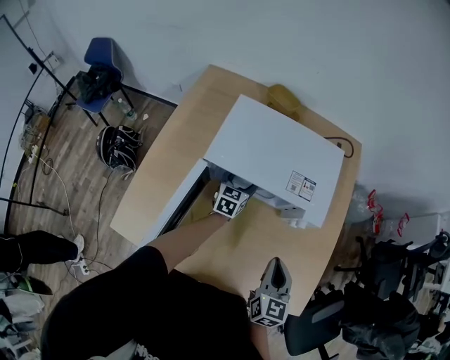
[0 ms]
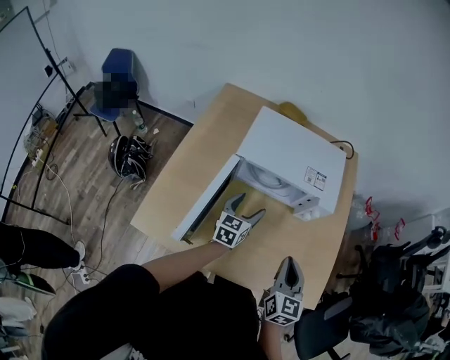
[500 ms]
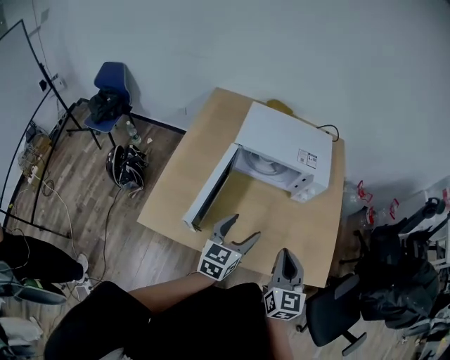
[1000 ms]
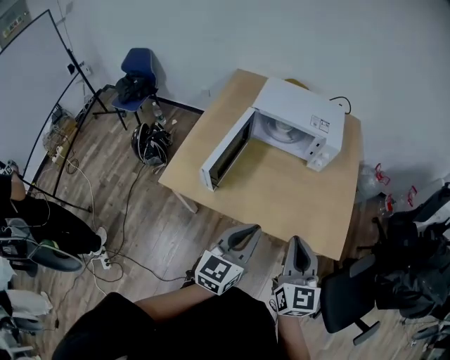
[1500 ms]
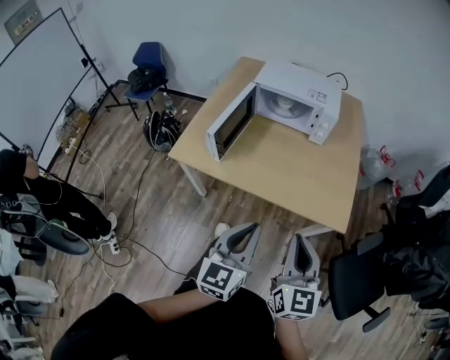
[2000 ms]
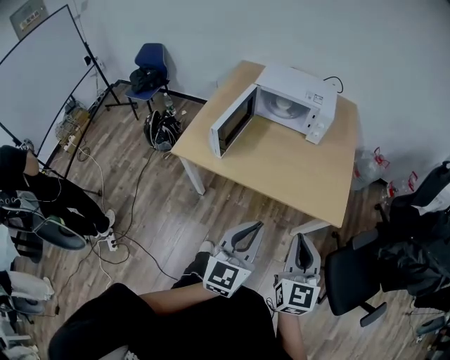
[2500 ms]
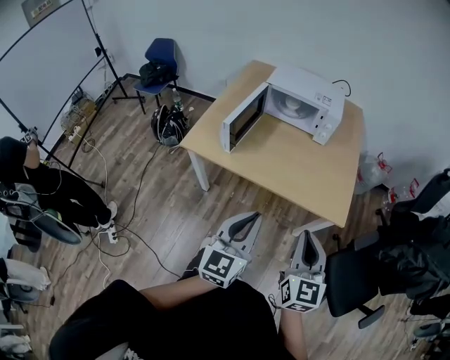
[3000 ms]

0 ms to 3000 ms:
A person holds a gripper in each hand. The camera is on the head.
0 ms to 1500 ms: The left gripper heads backward and upward, covering some 60 cm, and closes its fingers, while the right gripper travels backward and upward by approximately 30 cm, and turns by some 20 degrees.
1500 ms to 3000 ms: Both grippers travel together backward, about 20 cm.

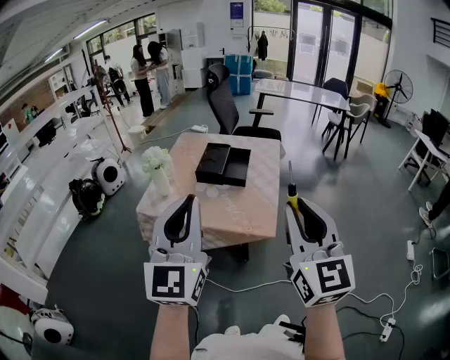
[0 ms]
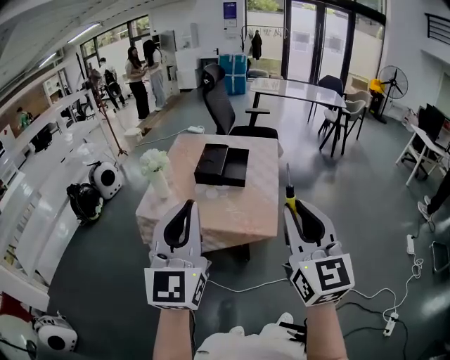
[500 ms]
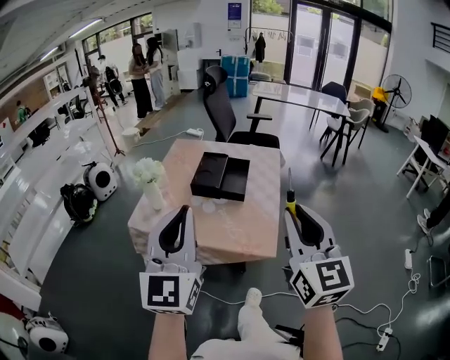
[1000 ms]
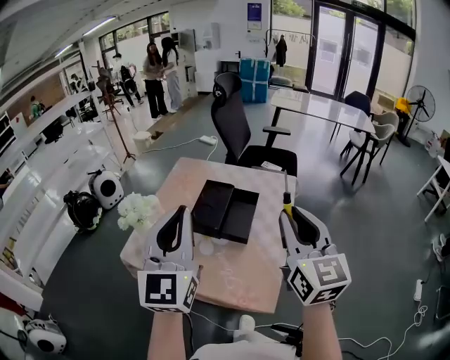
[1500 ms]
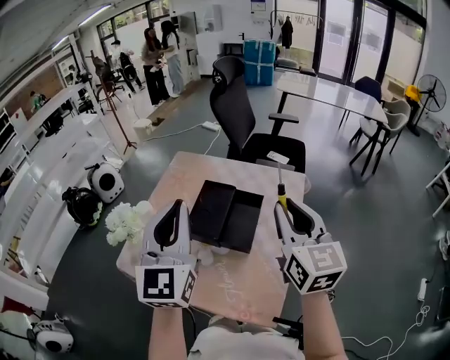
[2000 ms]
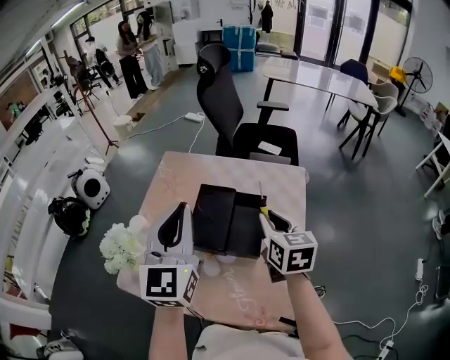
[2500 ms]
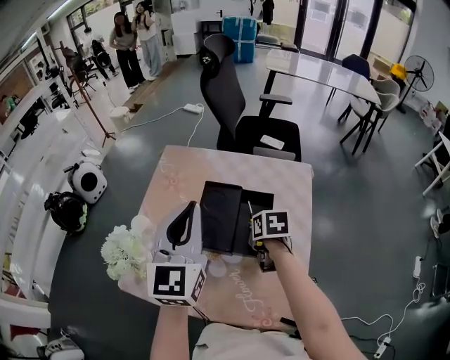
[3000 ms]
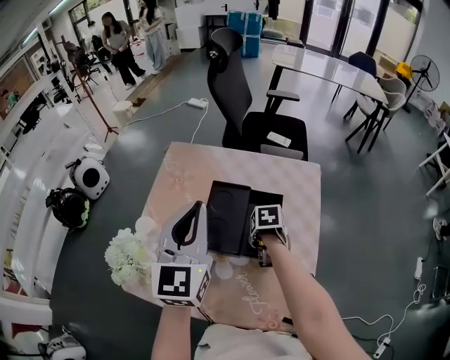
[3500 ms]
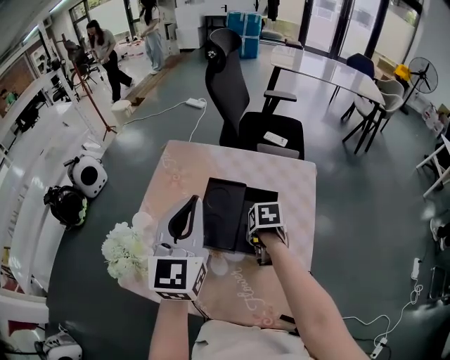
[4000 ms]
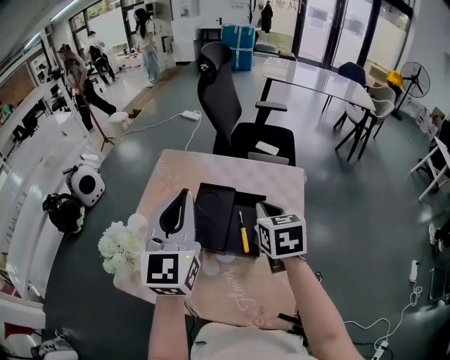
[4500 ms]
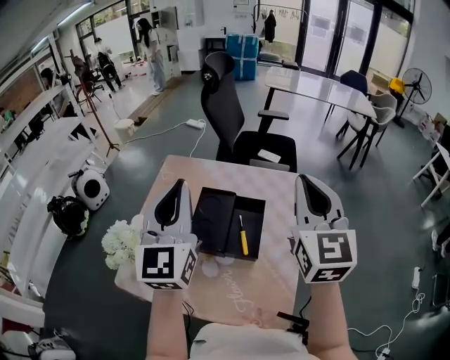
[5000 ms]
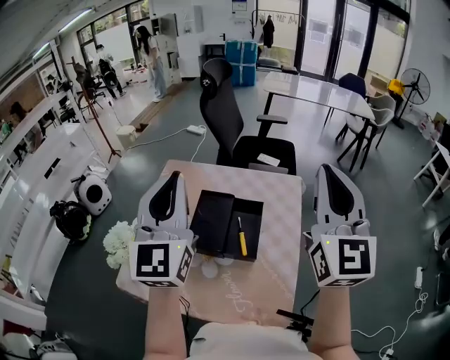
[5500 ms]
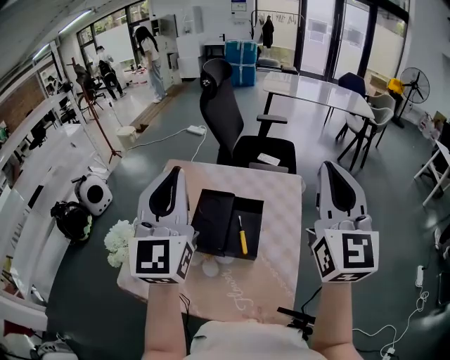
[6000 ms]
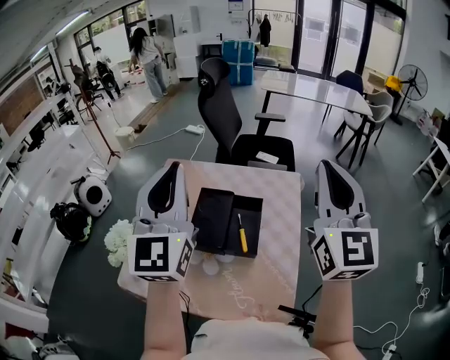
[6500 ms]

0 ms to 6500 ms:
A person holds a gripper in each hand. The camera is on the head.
0 ms to 2000 ms: Both grippers travel together forward, some 40 cm.
2000 ms to 4500 ms: The left gripper shifts about 10 cm forward, while the right gripper shifts about 10 cm forward and to the left, moves about 35 cm downward and comes back, tips its fingers downward by some 30 degrees, and opens, then closes once more.
4500 ms to 6500 ms: The left gripper is displaced upward by roughly 10 cm; the right gripper moves upward and to the right, about 25 cm, and points its fingers some 50 degrees further upward.

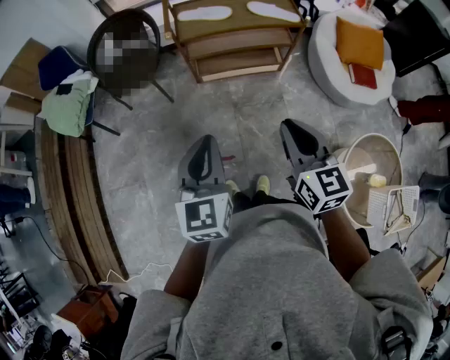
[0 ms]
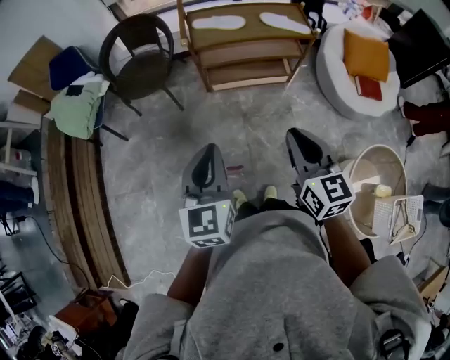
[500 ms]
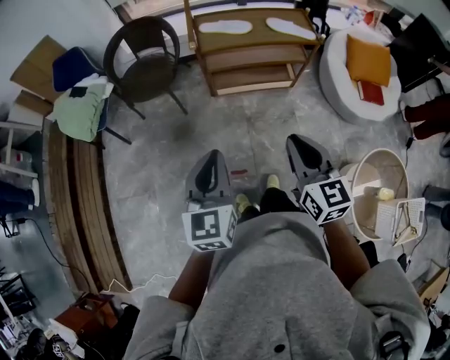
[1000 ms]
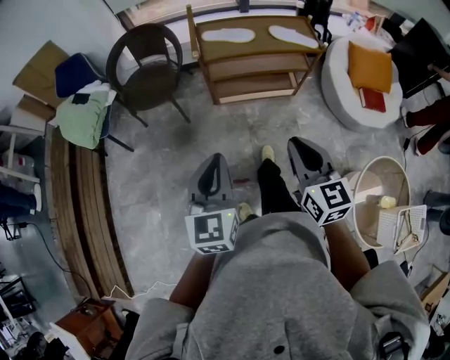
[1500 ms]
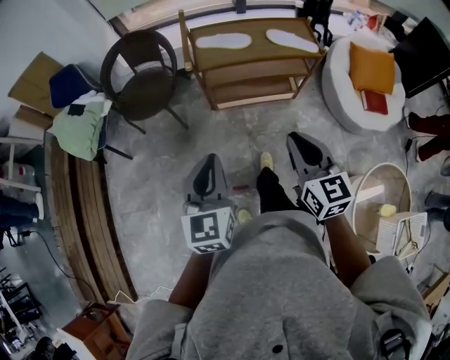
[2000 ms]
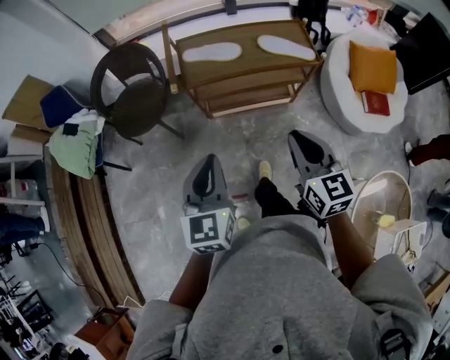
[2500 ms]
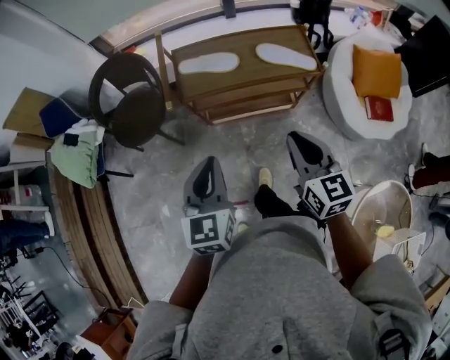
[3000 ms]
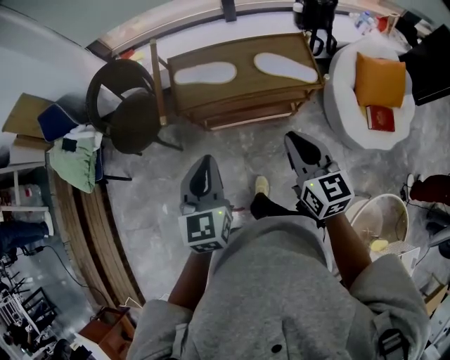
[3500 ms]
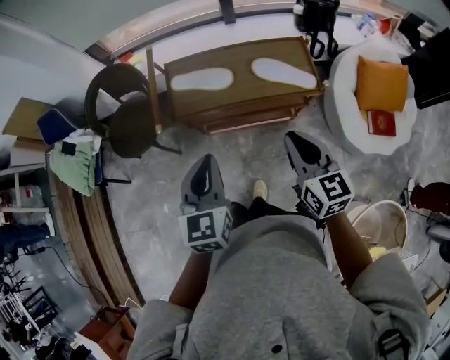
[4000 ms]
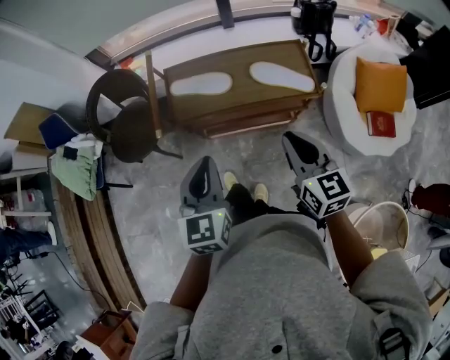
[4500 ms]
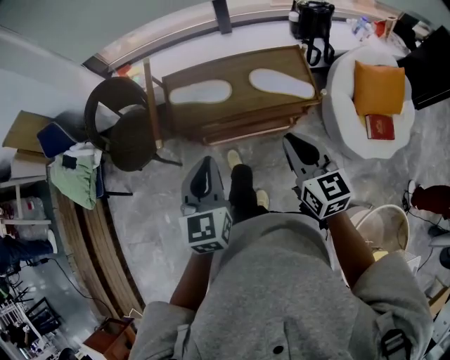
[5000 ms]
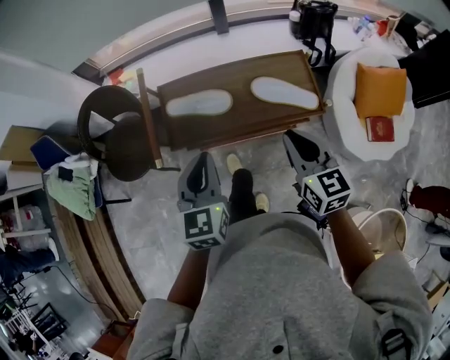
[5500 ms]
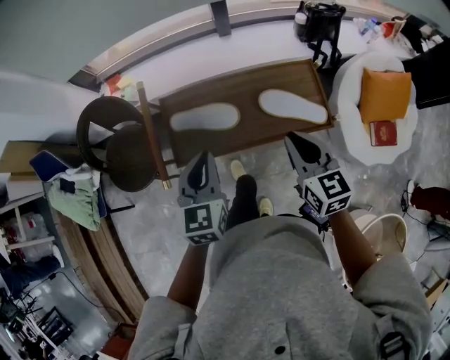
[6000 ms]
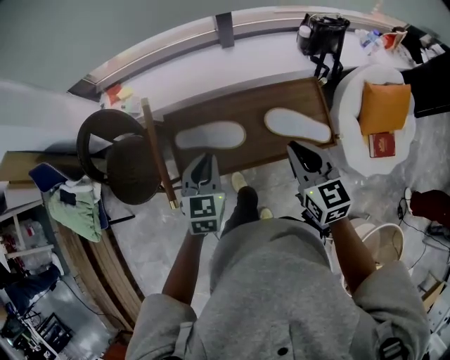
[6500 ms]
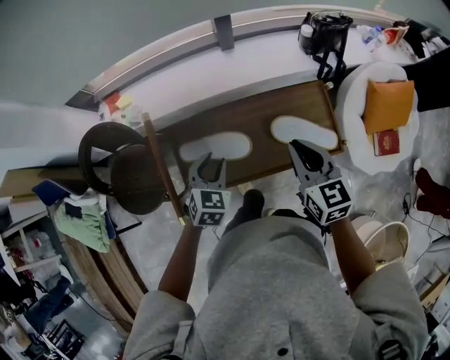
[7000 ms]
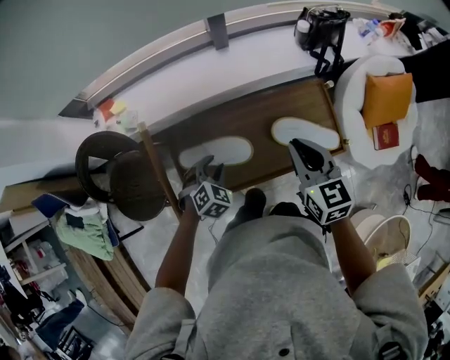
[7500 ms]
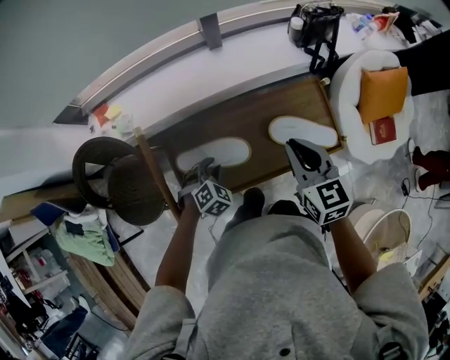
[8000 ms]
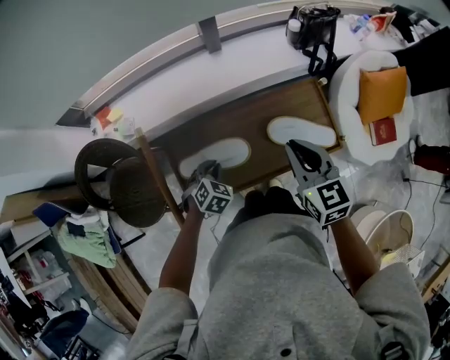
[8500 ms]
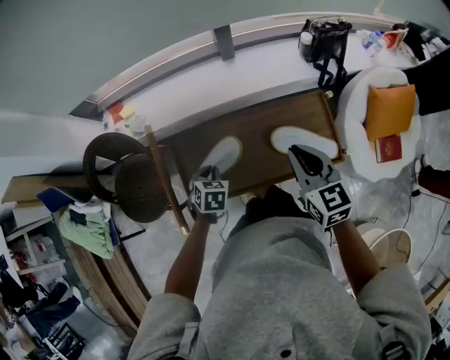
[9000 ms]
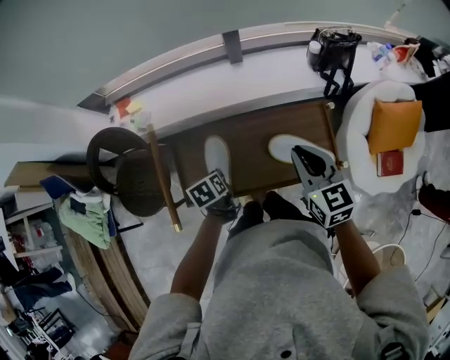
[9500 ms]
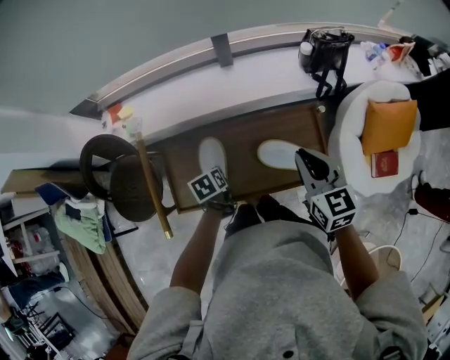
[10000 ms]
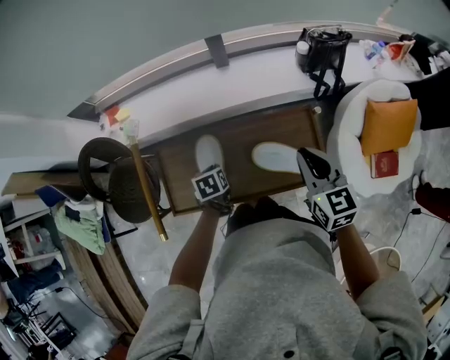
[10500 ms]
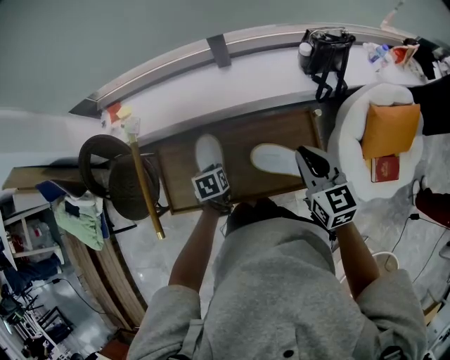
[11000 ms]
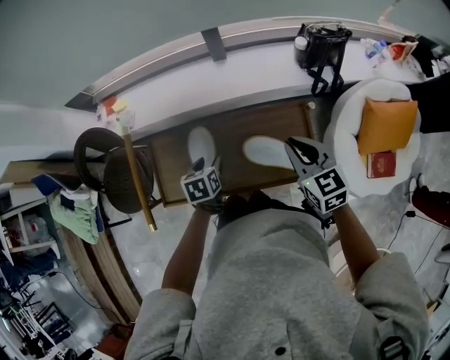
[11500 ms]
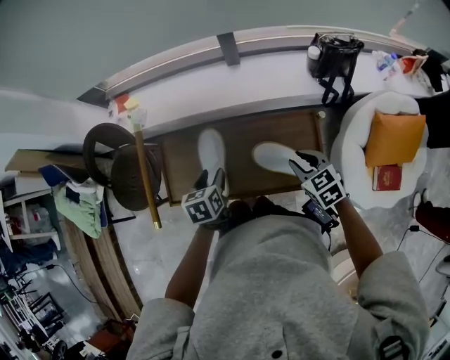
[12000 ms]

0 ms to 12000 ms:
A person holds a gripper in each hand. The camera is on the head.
0 ms to 2000 ms: The two grippers go approximately 10 cm forward.
2000 ms to 4000 ms: Both grippers move forward and to the right, roughly 30 cm.
4000 ms to 6000 ms: Both grippers travel together forward, approximately 20 cm.
6000 ms to 8000 ms: The right gripper is displaced forward by roughly 10 cm. Meanwhile the left gripper is displaced downward and forward by about 25 cm, tips its fingers downward by approximately 40 degrees, and opens up.
8000 ms to 10000 ms: The left gripper rotates around the line of its fingers by about 80 degrees, counterclockwise from behind. Meanwhile the right gripper goes some 10 cm to the right.
10000 ms to 12000 ms: The left gripper is displaced upward by some 5 cm, and opens. The right gripper heads downward, covering roughly 15 cm, and swivels roughly 30 degrees.

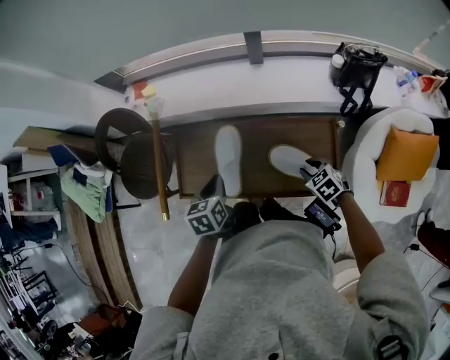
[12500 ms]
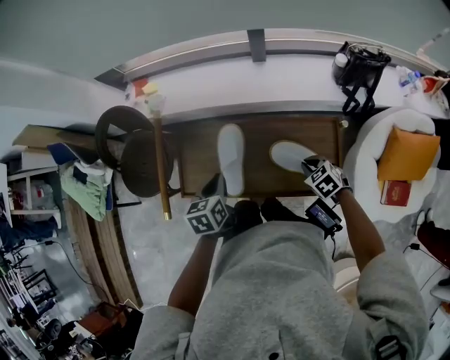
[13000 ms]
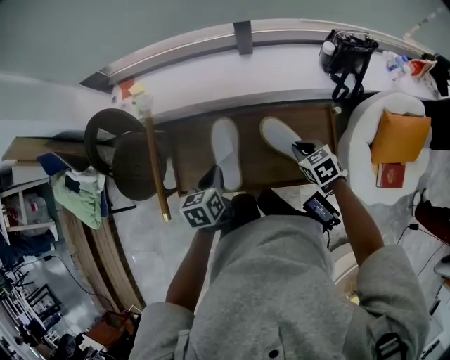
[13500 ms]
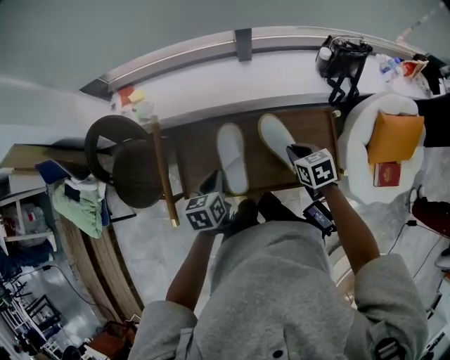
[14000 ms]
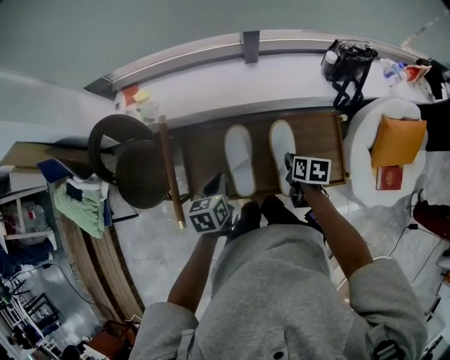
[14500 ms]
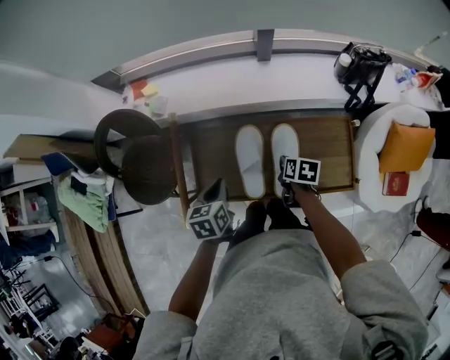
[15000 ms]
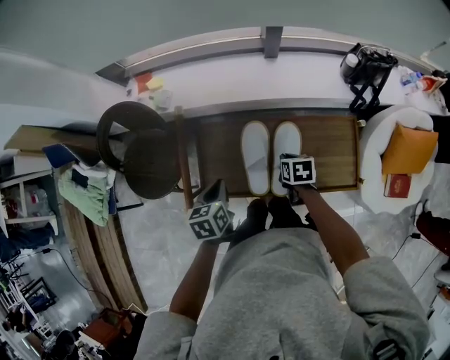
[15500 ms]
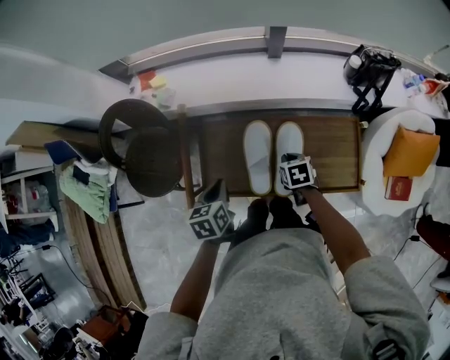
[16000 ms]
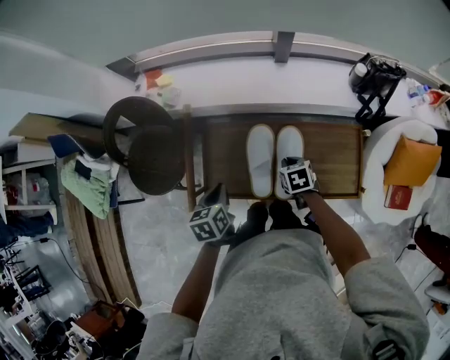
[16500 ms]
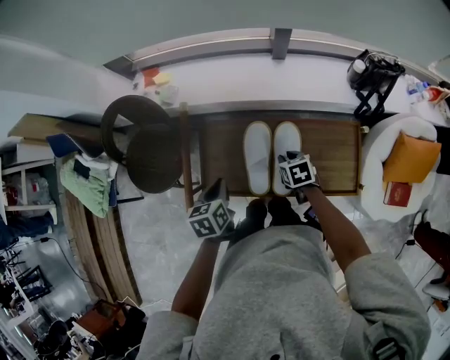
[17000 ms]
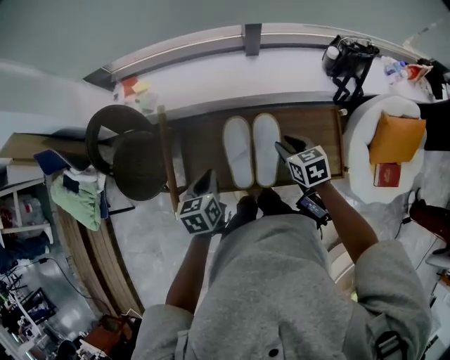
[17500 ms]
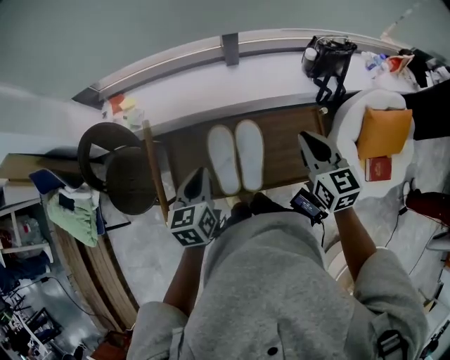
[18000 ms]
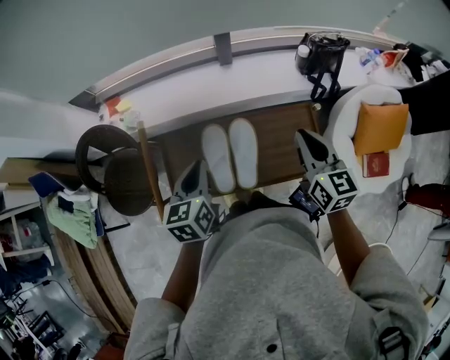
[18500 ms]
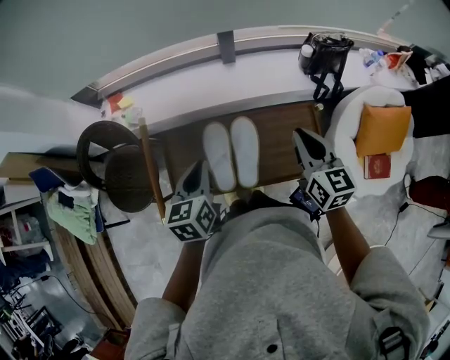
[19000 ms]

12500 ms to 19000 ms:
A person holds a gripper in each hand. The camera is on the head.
12500 ms to 14500 ms: The left gripper shifts by approximately 5 cm. The right gripper goes about 10 cm to the left and forward, rotates around the line of its fingers by about 60 degrees, clockwise from behind, and closes its fingers.
14500 ms to 17000 ms: Both grippers travel together to the left, some 5 cm. The right gripper swivels about 30 degrees.
17000 ms to 19000 ms: The right gripper shifts about 30 cm upward and to the right, and tilts its fingers roughly 40 degrees upward. The left gripper travels upward and to the right by approximately 15 cm, and swivels approximately 20 degrees.
